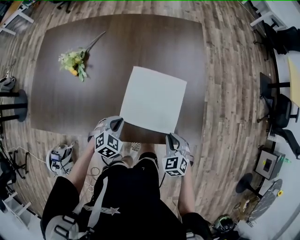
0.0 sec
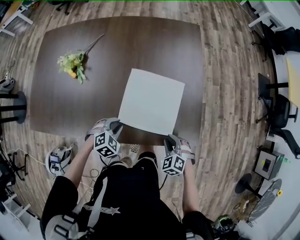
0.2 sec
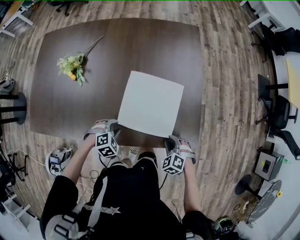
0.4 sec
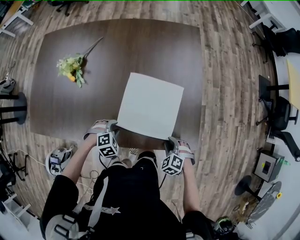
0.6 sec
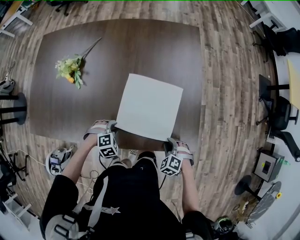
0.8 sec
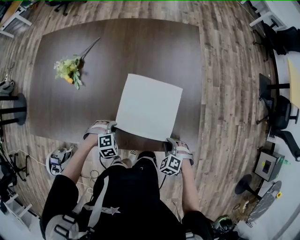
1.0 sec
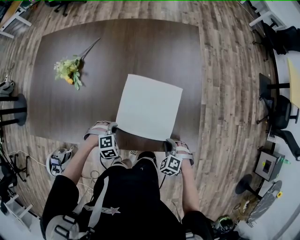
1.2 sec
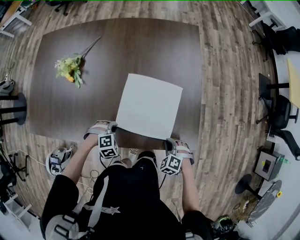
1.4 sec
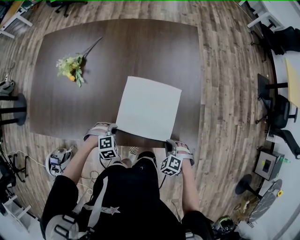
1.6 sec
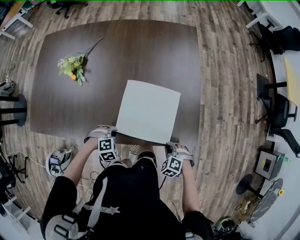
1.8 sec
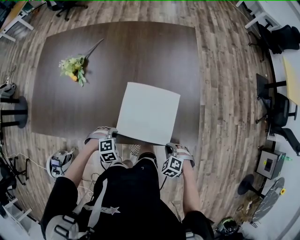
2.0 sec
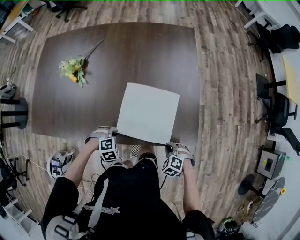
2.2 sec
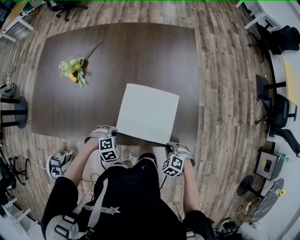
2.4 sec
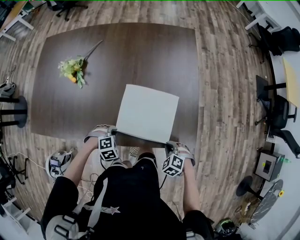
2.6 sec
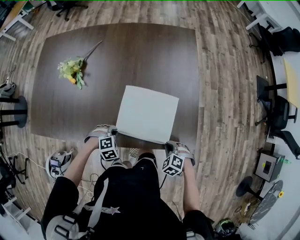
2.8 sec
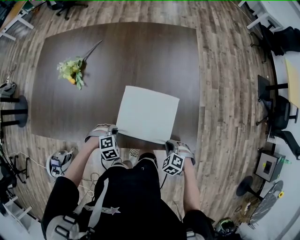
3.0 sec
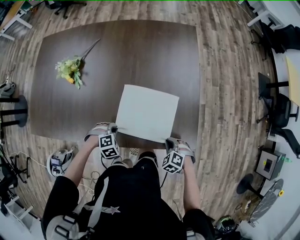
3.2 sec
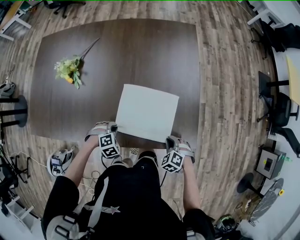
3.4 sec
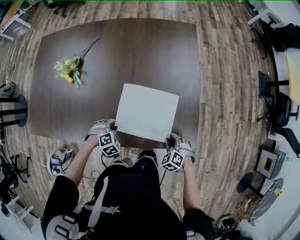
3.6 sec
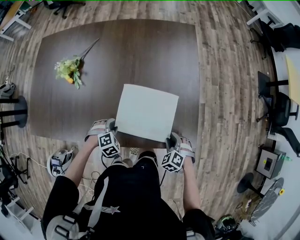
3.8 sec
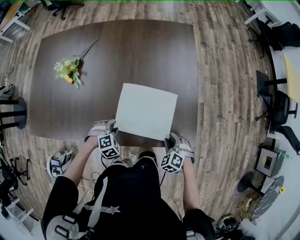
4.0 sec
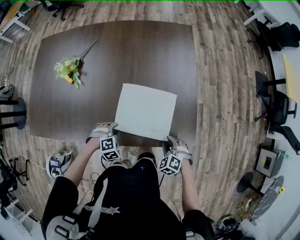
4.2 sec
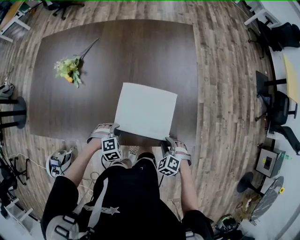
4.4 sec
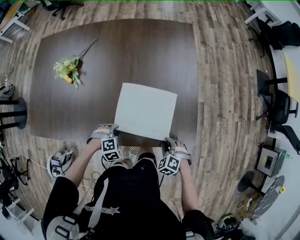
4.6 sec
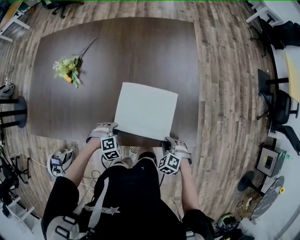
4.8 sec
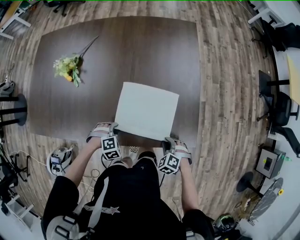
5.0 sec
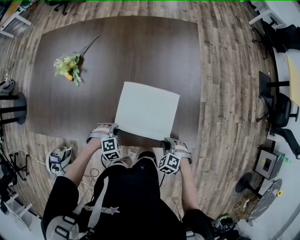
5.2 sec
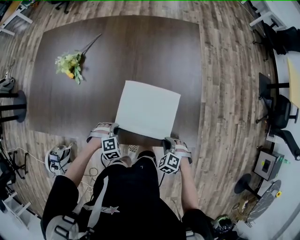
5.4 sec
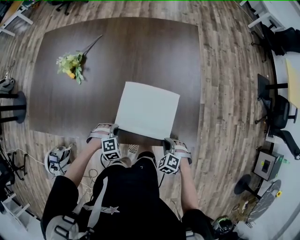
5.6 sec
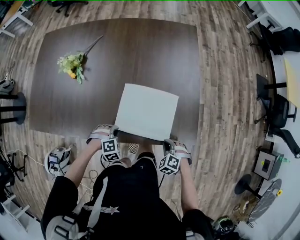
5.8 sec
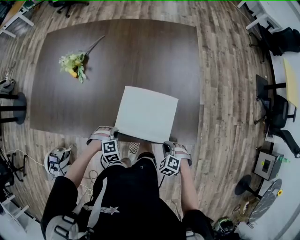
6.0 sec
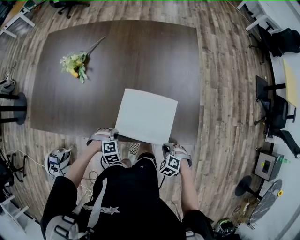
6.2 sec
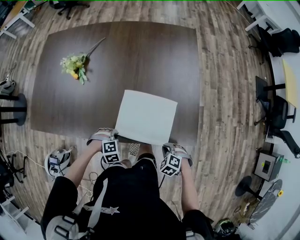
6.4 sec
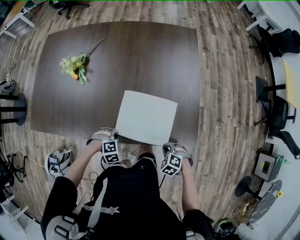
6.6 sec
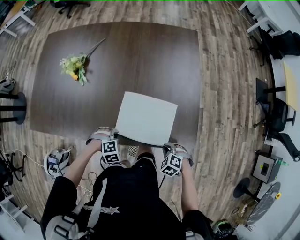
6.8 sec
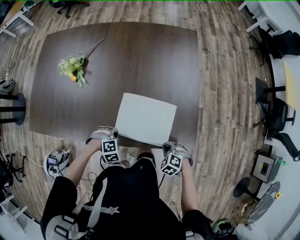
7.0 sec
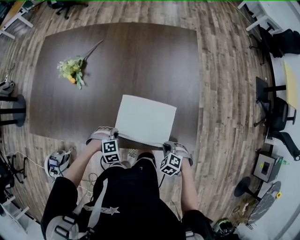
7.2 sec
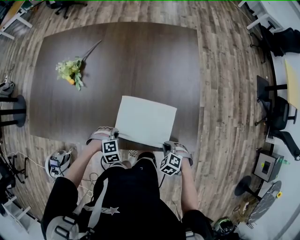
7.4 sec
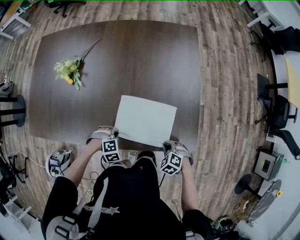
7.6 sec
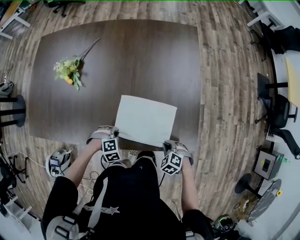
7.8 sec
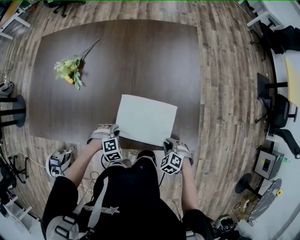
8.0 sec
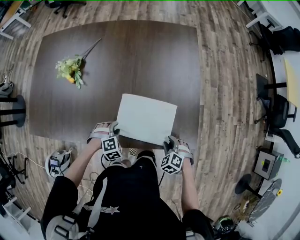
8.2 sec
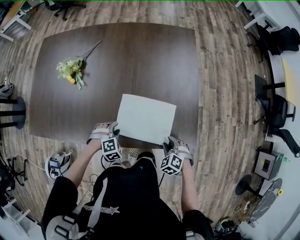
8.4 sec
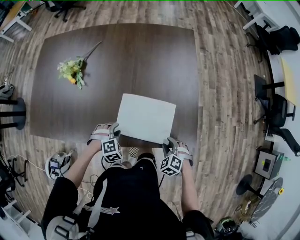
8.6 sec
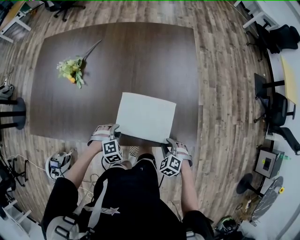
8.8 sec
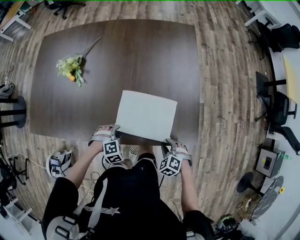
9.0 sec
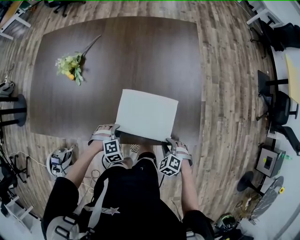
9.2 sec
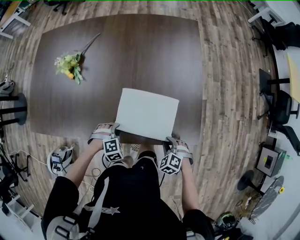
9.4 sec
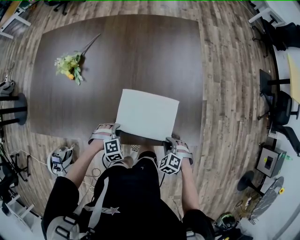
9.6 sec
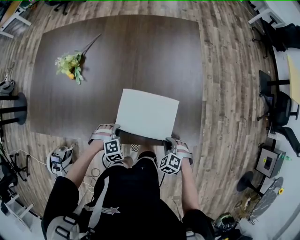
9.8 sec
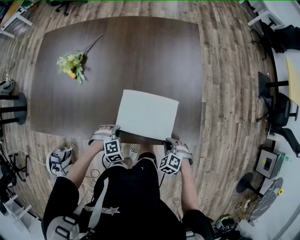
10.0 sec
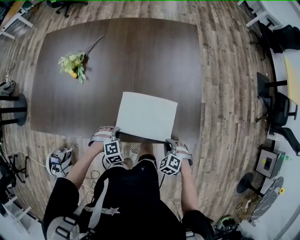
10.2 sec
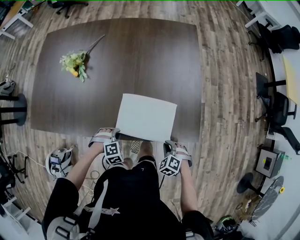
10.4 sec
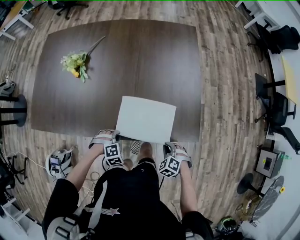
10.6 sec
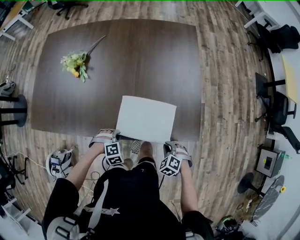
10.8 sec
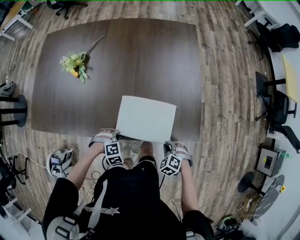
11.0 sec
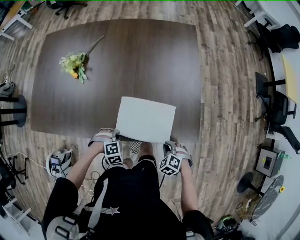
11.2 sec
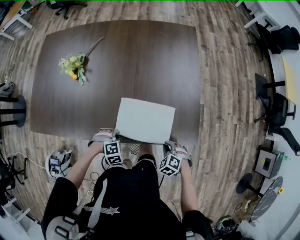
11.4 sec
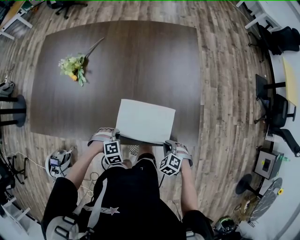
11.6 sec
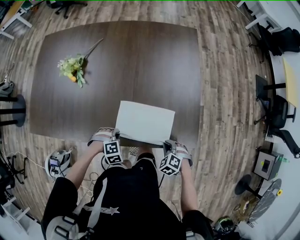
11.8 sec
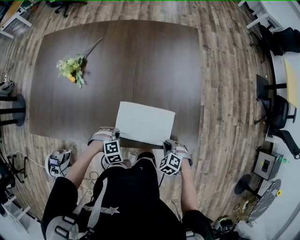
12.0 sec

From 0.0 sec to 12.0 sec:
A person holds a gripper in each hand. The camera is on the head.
From 0.0 sec to 1.6 sec: The right gripper shifts roughly 5 cm downward, swivels roughly 30 degrees, and opens, then closes once more.
From 3.0 sec to 4.4 sec: The right gripper opens its fingers.
From 4.4 sec to 6.0 sec: The right gripper closes up.
From 7.6 sec to 9.0 sec: The right gripper opens its fingers.
From 9.0 sec to 10.4 sec: The right gripper closes.

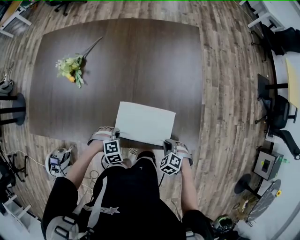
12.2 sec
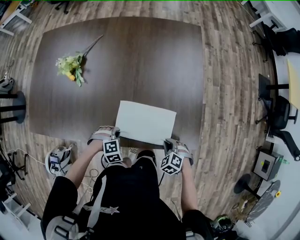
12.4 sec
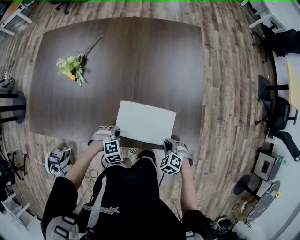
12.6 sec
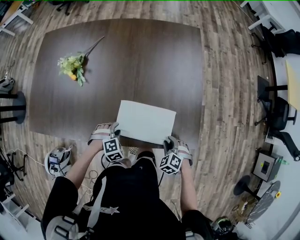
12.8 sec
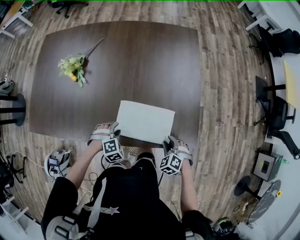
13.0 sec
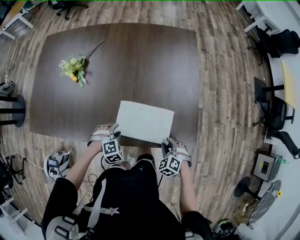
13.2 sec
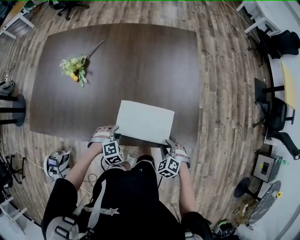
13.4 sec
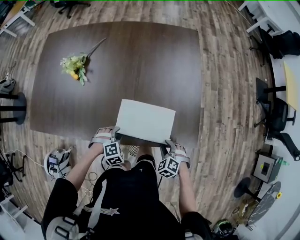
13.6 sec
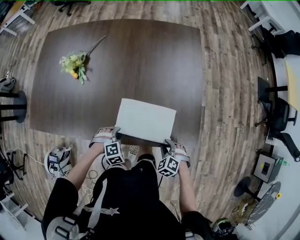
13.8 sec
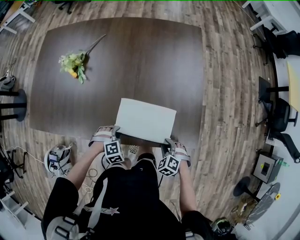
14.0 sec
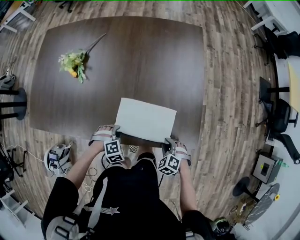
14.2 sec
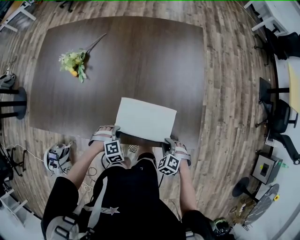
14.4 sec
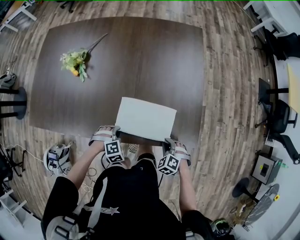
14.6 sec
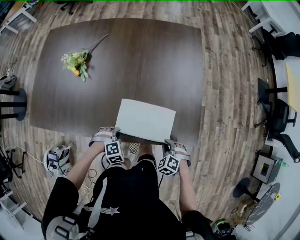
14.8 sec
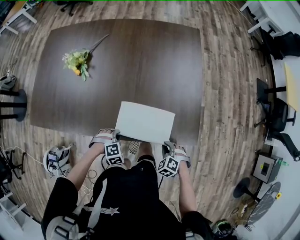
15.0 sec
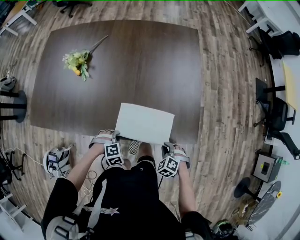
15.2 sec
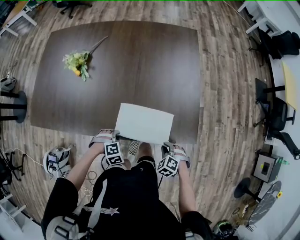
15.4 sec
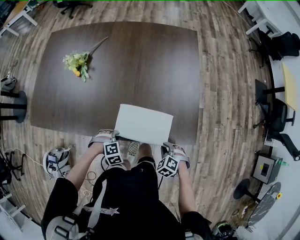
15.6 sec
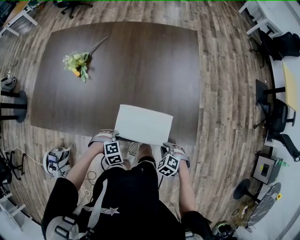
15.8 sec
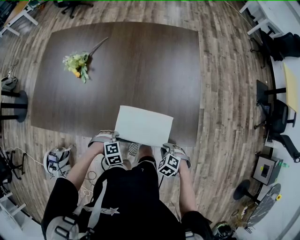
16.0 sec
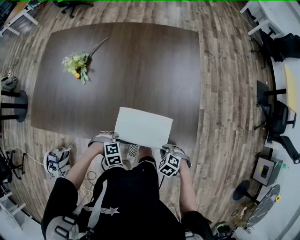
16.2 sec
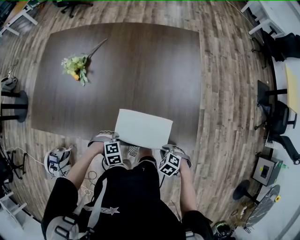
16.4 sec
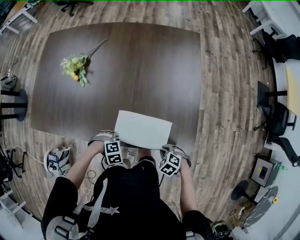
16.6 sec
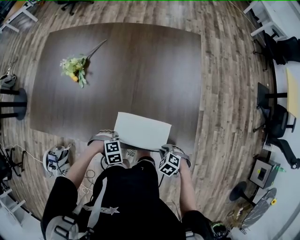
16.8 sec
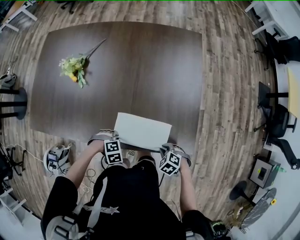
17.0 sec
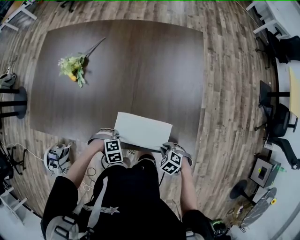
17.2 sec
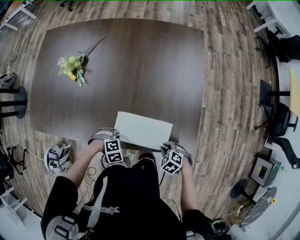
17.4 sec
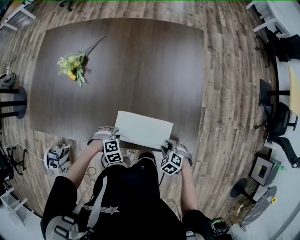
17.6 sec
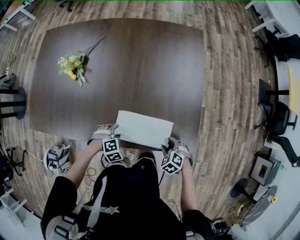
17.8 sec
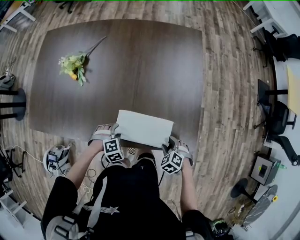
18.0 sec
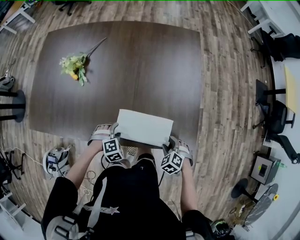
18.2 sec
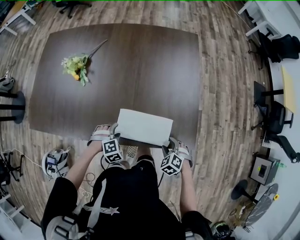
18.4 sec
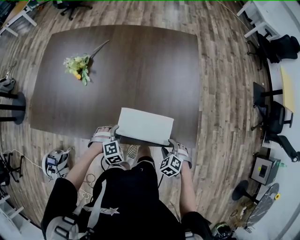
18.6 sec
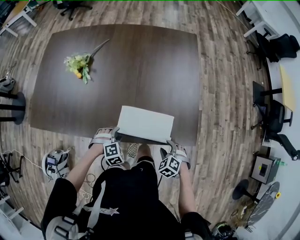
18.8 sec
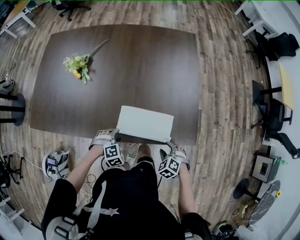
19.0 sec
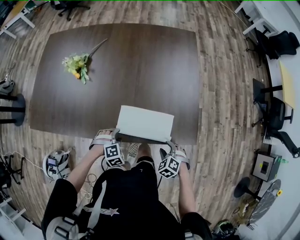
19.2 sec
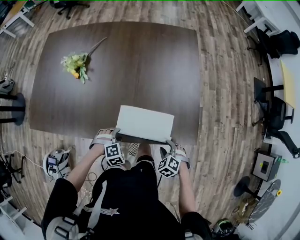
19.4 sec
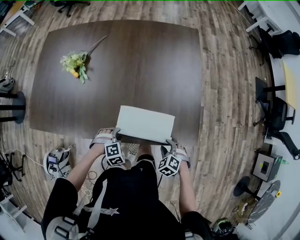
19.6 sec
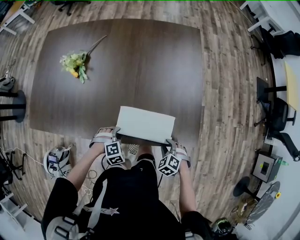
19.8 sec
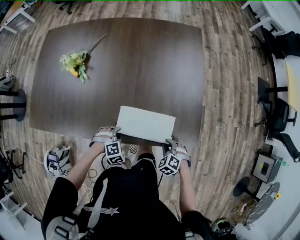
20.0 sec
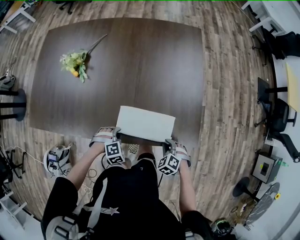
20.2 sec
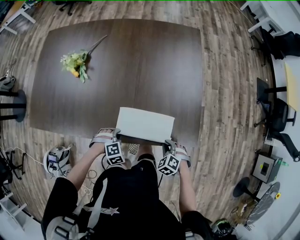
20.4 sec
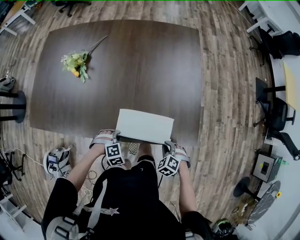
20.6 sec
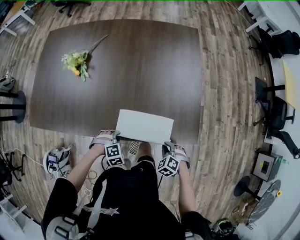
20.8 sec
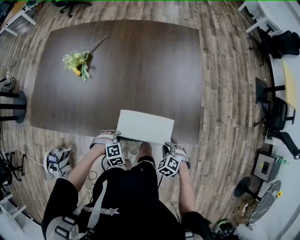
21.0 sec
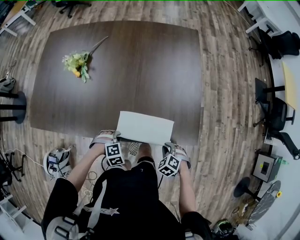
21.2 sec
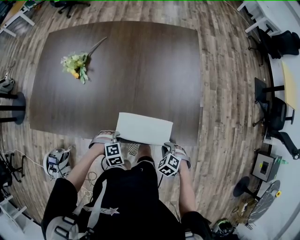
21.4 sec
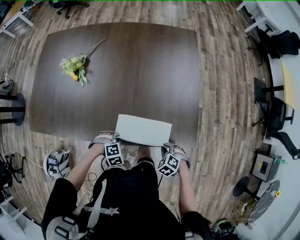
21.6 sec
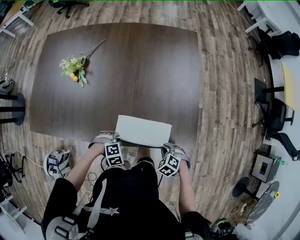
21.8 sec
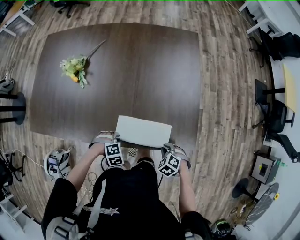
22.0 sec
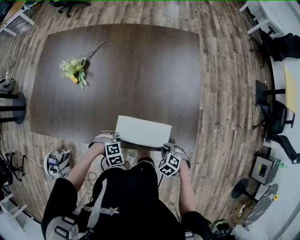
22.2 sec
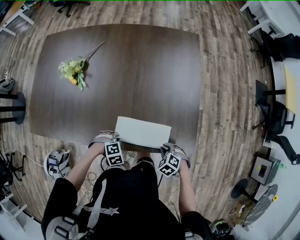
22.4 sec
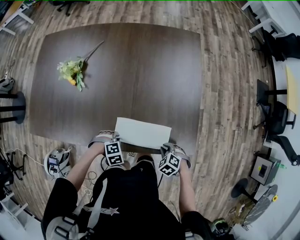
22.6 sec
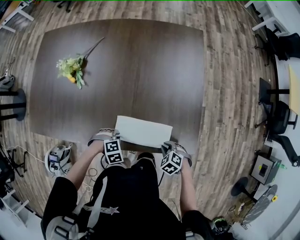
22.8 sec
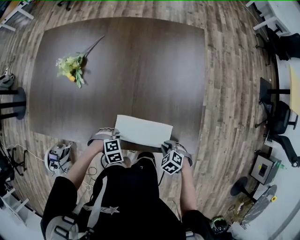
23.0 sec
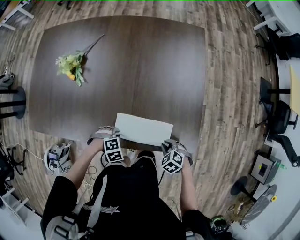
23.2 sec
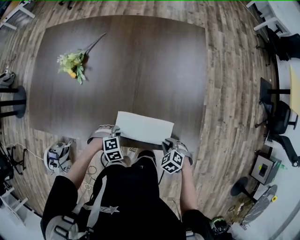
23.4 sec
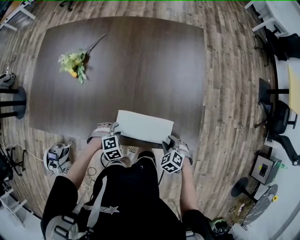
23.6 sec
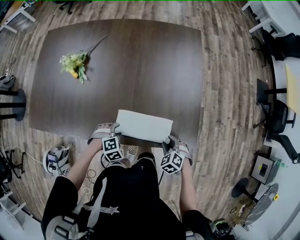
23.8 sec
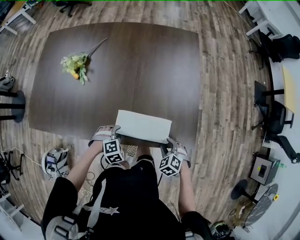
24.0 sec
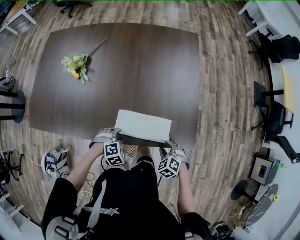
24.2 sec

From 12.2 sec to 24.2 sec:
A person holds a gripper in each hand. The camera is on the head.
From 12.2 sec to 13.8 sec: The right gripper opens.
From 16.6 sec to 18.2 sec: The right gripper opens its fingers.
From 19.8 sec to 21.2 sec: The right gripper closes.
From 21.2 sec to 22.6 sec: The right gripper shifts by about 5 cm.
From 22.6 sec to 24.2 sec: The right gripper opens its fingers.

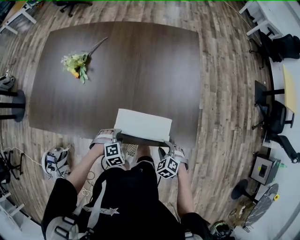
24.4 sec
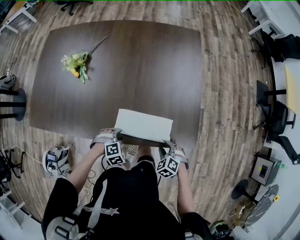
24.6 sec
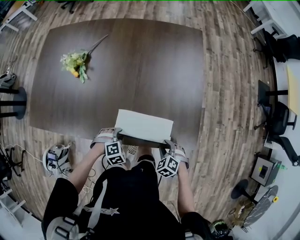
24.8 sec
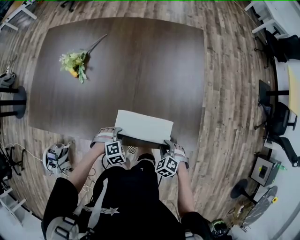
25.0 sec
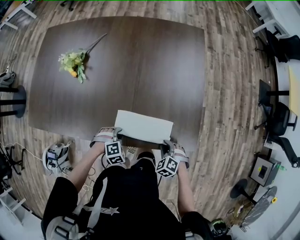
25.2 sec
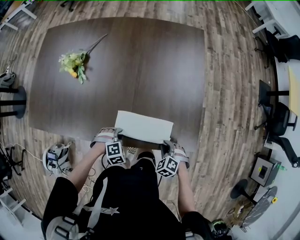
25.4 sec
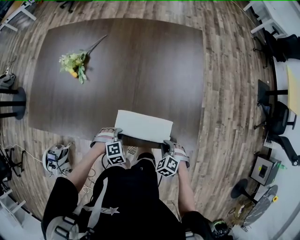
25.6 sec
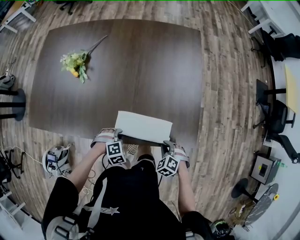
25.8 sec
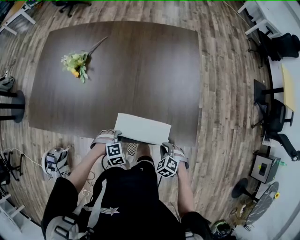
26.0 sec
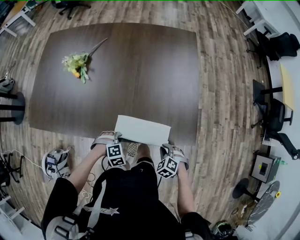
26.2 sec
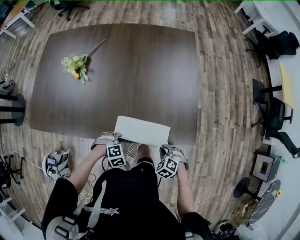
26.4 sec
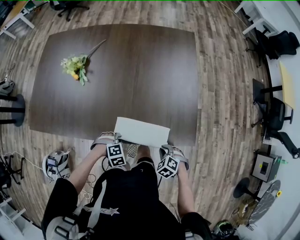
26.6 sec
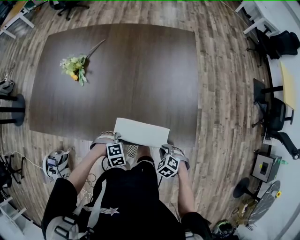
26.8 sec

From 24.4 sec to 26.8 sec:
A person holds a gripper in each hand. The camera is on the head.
From 24.4 sec to 25.6 sec: The right gripper closes.
